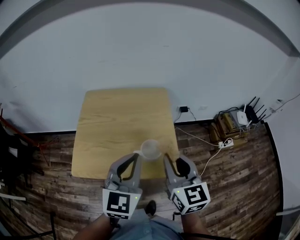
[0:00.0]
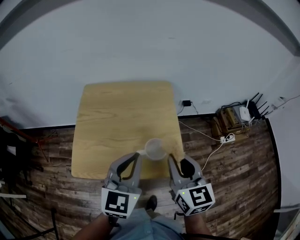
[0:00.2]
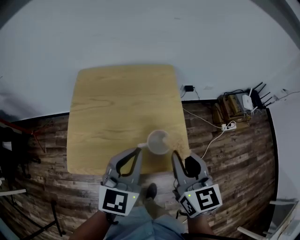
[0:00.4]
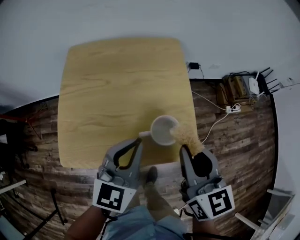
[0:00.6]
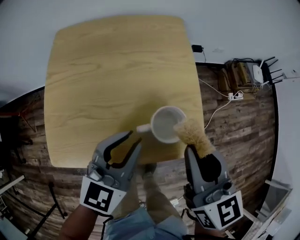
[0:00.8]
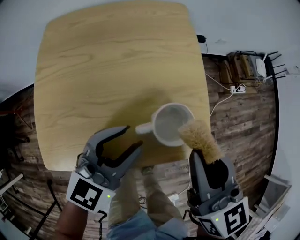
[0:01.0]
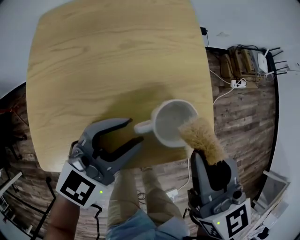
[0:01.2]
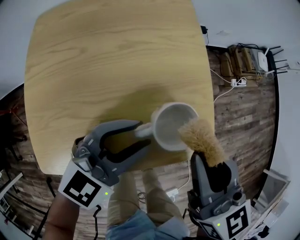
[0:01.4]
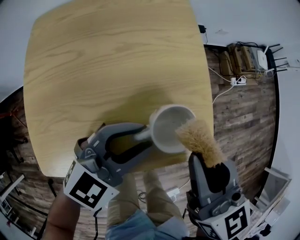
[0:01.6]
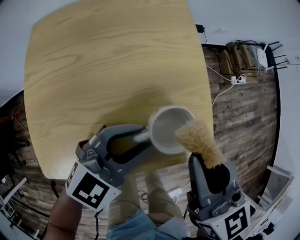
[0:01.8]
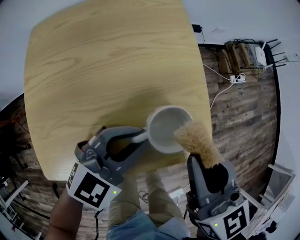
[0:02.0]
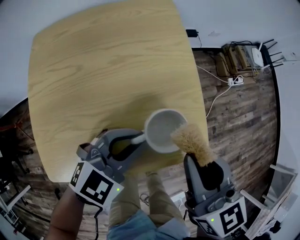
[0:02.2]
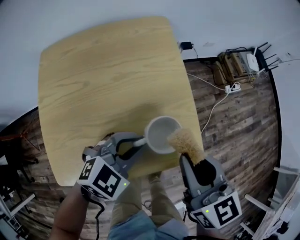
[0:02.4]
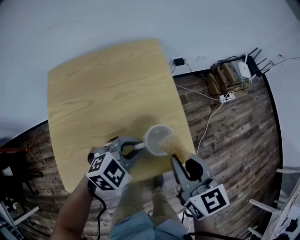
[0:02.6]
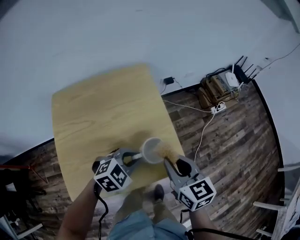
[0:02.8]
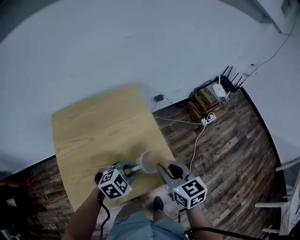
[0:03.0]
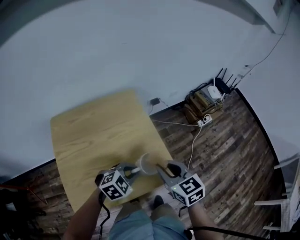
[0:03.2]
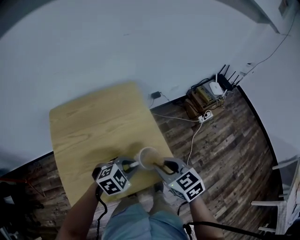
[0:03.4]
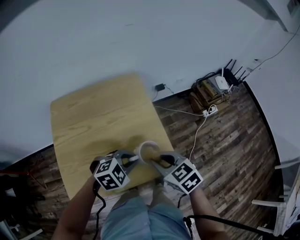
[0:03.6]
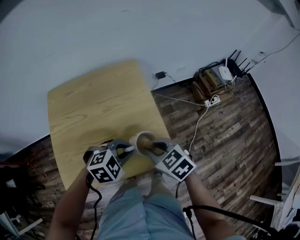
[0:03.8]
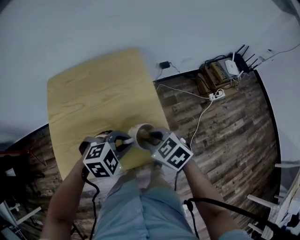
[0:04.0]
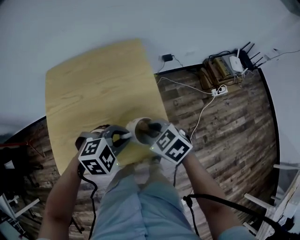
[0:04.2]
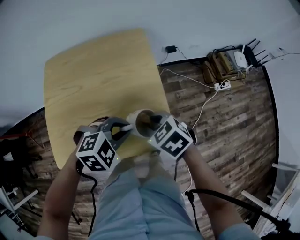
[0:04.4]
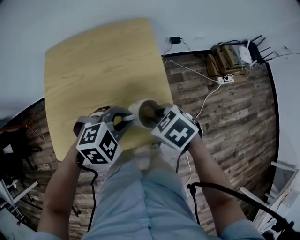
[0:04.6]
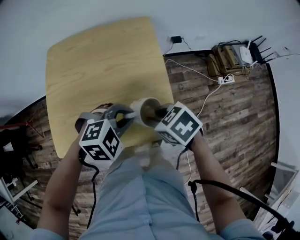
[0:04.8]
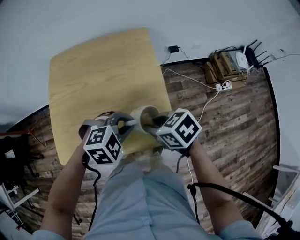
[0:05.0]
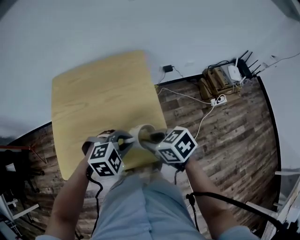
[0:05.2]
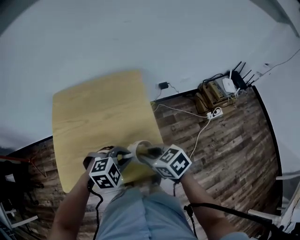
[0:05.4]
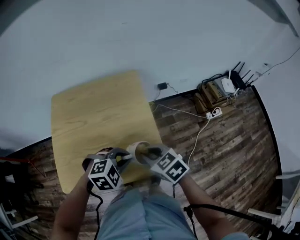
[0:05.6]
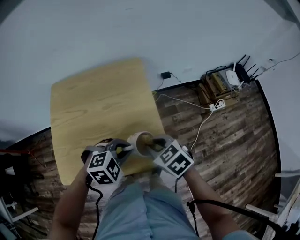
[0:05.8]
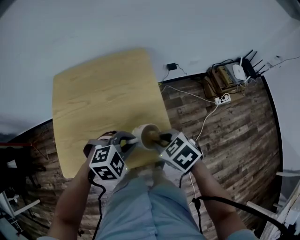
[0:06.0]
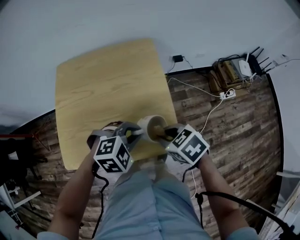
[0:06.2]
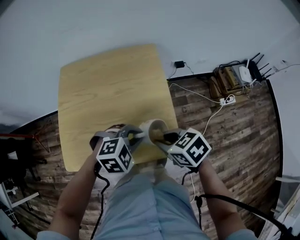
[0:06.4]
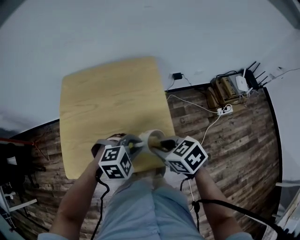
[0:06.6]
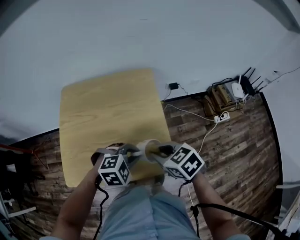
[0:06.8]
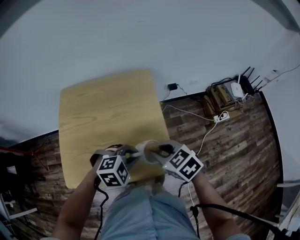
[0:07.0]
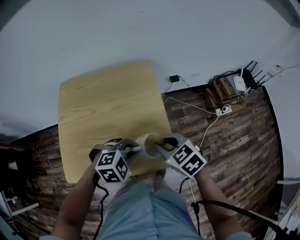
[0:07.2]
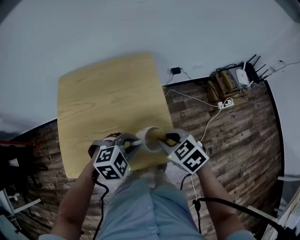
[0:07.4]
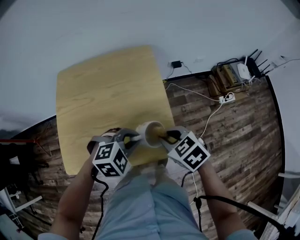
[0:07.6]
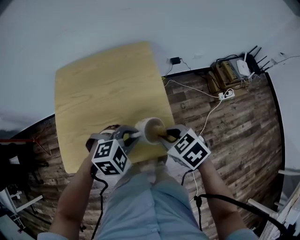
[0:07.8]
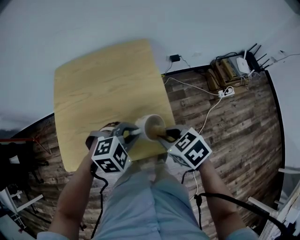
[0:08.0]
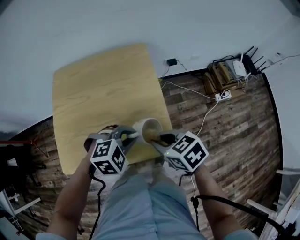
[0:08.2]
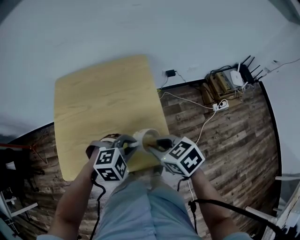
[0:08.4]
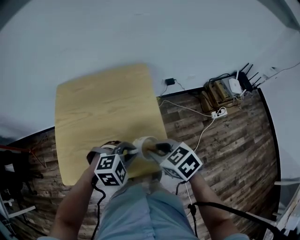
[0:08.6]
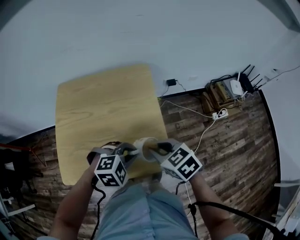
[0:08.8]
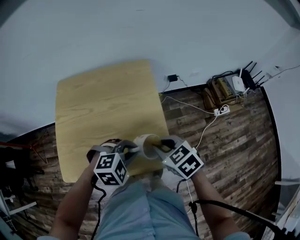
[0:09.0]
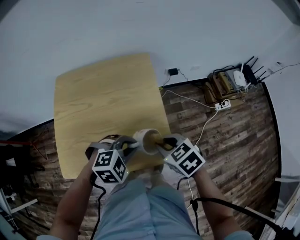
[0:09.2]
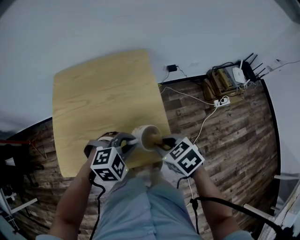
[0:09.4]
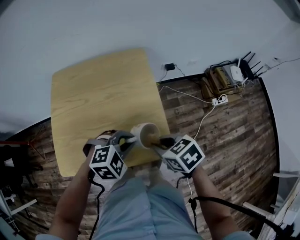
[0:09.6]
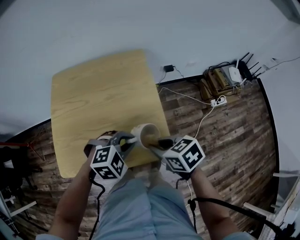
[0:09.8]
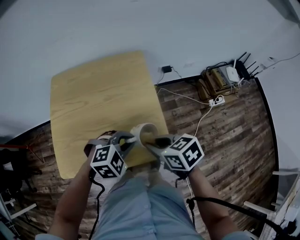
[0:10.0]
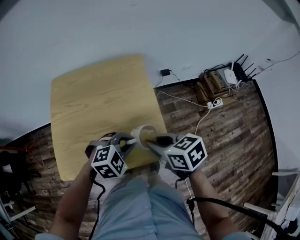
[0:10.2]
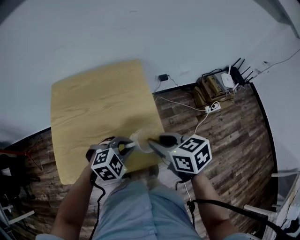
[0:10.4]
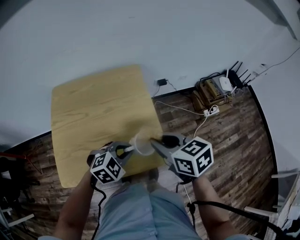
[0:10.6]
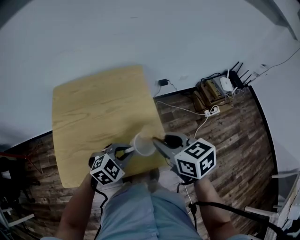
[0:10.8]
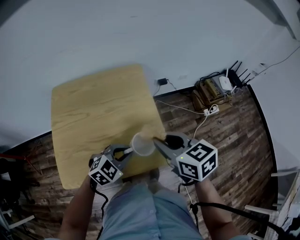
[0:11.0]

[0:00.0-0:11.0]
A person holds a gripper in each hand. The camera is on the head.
0:00.0 to 0:01.6: The left gripper moves downward, approximately 20 cm, turns by some 50 degrees, and opens; the right gripper goes approximately 10 cm downward.
0:01.6 to 0:03.2: The left gripper swivels about 30 degrees, and closes up.
0:03.2 to 0:04.8: The right gripper shifts roughly 10 cm downward, and rotates approximately 50 degrees.
0:04.8 to 0:09.4: The grippers move only a little.
0:09.4 to 0:11.0: The left gripper changes its angle by roughly 20 degrees, while the right gripper travels upward by some 10 cm, and turns by roughly 30 degrees.

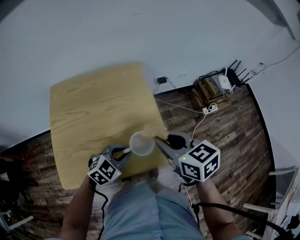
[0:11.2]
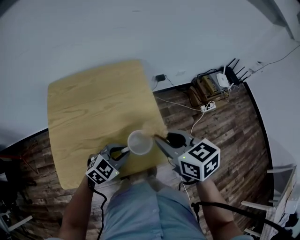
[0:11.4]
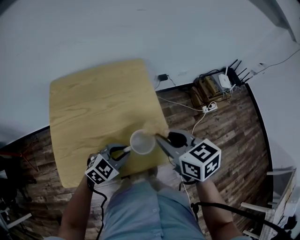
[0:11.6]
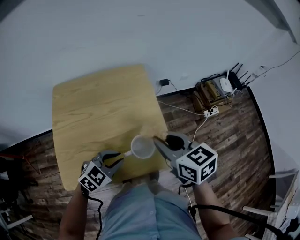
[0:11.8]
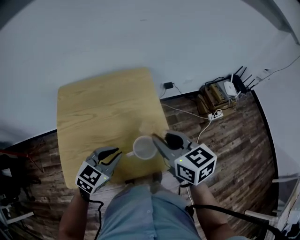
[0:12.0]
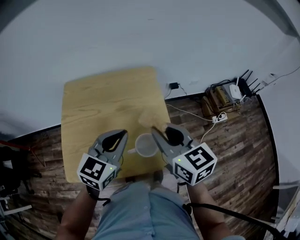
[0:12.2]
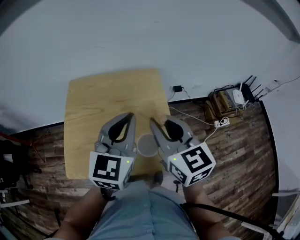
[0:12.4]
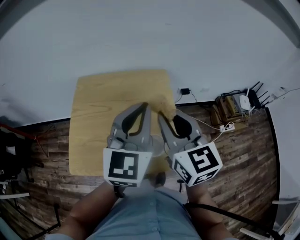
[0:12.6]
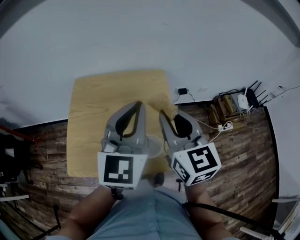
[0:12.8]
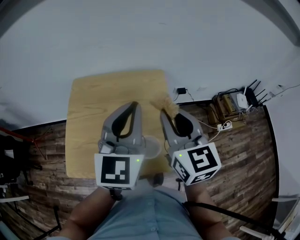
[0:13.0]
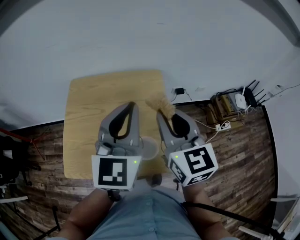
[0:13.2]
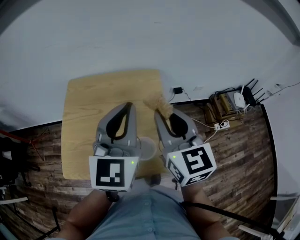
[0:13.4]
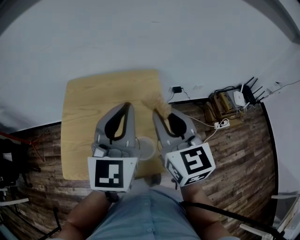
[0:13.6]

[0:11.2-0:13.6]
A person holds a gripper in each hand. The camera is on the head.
0:11.2 to 0:12.4: The right gripper shifts some 10 cm upward, and turns by some 20 degrees, while the left gripper shifts about 25 cm upward, and points its fingers some 30 degrees further upward.
0:12.4 to 0:13.6: The left gripper moves about 5 cm.

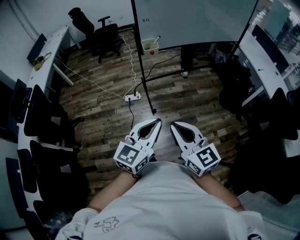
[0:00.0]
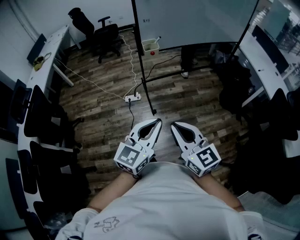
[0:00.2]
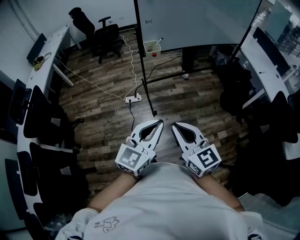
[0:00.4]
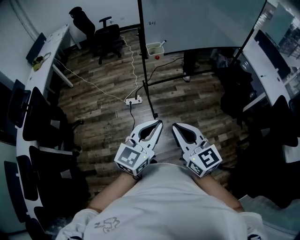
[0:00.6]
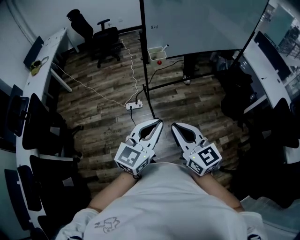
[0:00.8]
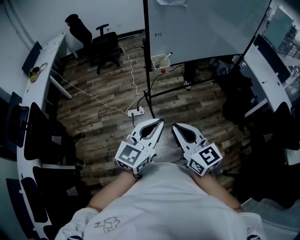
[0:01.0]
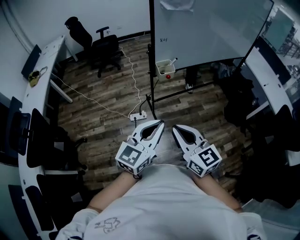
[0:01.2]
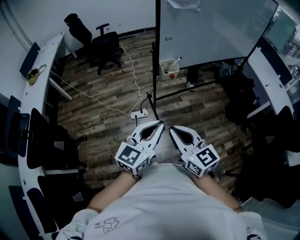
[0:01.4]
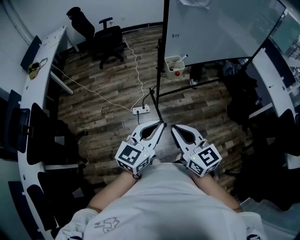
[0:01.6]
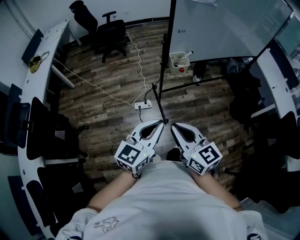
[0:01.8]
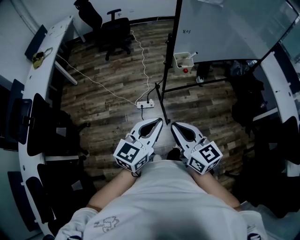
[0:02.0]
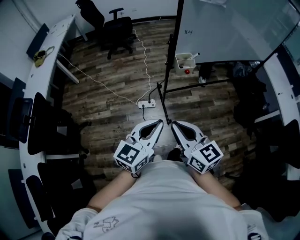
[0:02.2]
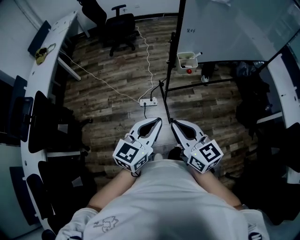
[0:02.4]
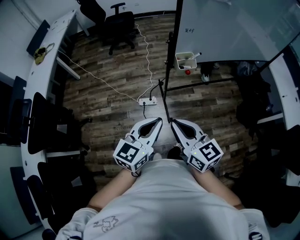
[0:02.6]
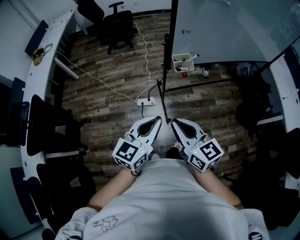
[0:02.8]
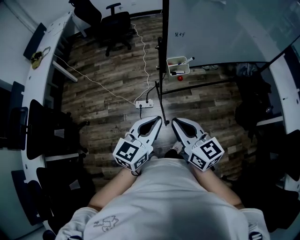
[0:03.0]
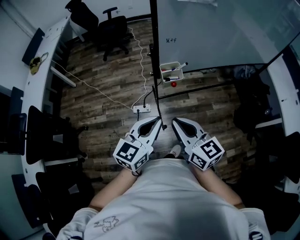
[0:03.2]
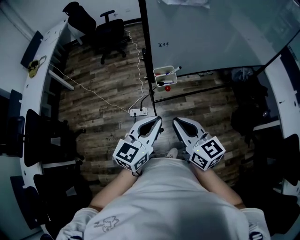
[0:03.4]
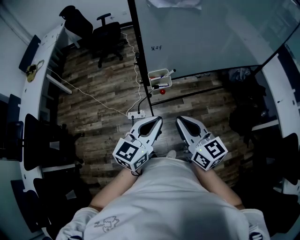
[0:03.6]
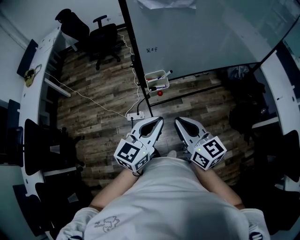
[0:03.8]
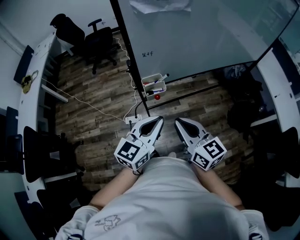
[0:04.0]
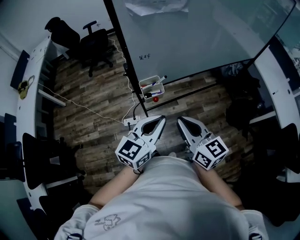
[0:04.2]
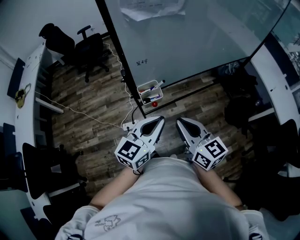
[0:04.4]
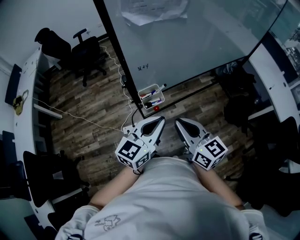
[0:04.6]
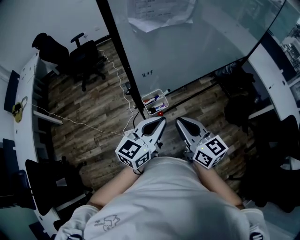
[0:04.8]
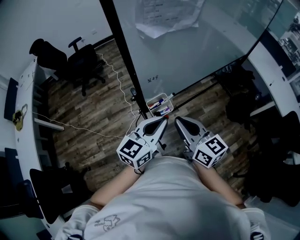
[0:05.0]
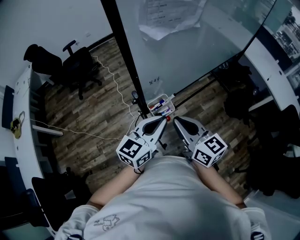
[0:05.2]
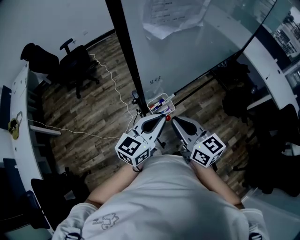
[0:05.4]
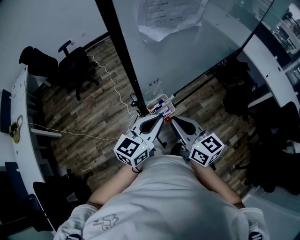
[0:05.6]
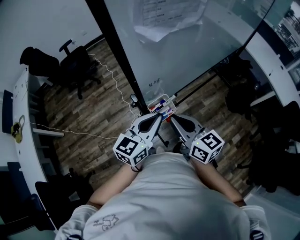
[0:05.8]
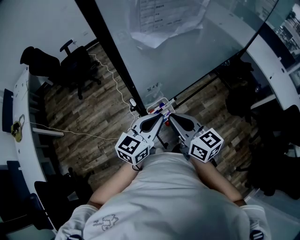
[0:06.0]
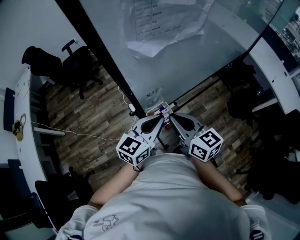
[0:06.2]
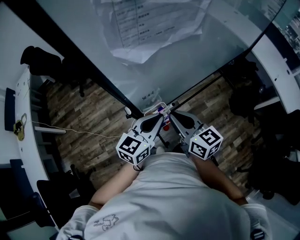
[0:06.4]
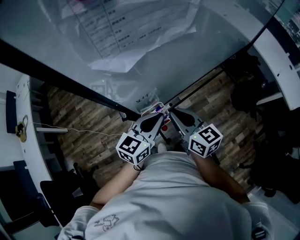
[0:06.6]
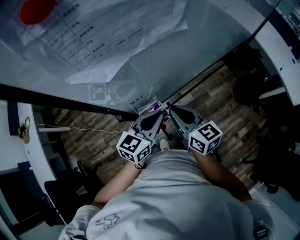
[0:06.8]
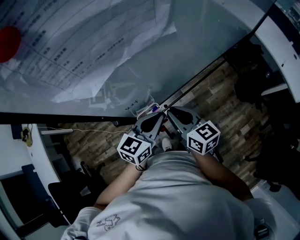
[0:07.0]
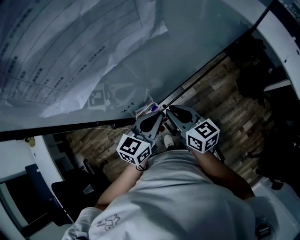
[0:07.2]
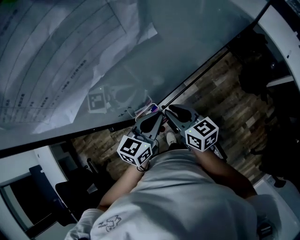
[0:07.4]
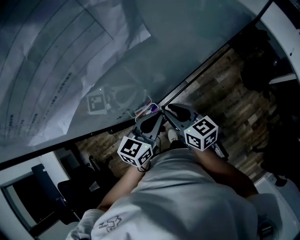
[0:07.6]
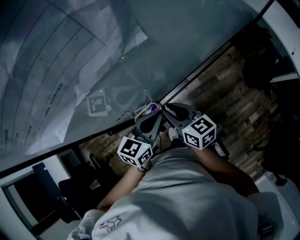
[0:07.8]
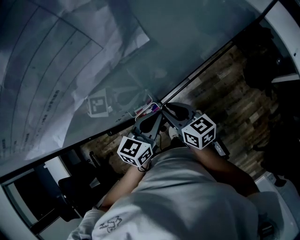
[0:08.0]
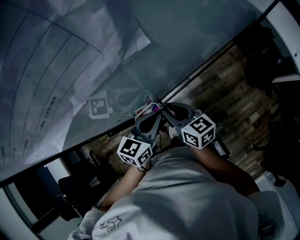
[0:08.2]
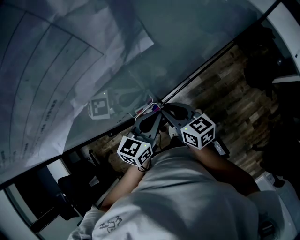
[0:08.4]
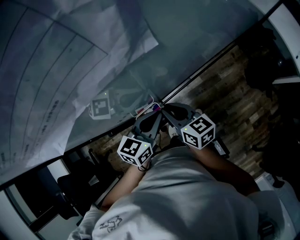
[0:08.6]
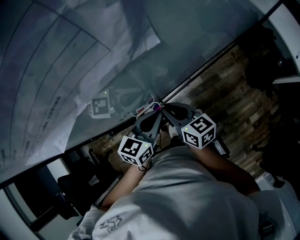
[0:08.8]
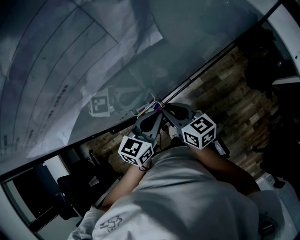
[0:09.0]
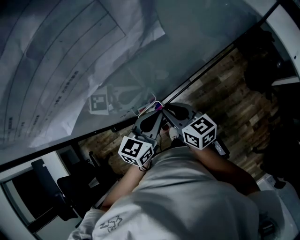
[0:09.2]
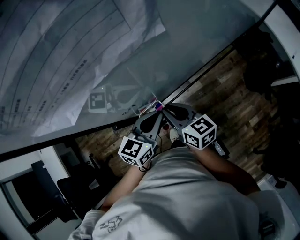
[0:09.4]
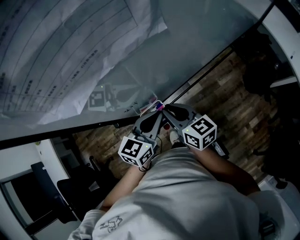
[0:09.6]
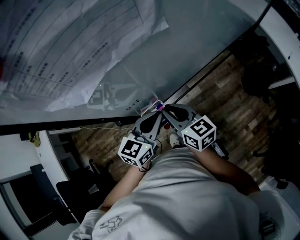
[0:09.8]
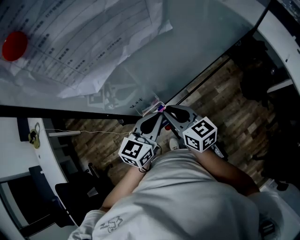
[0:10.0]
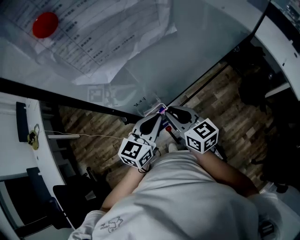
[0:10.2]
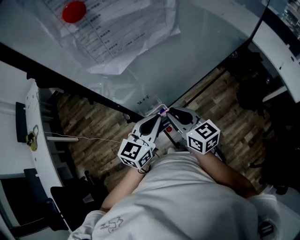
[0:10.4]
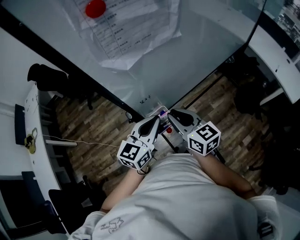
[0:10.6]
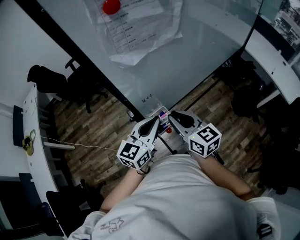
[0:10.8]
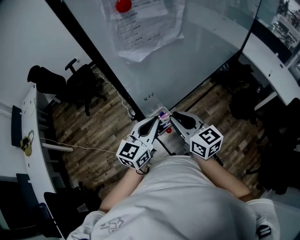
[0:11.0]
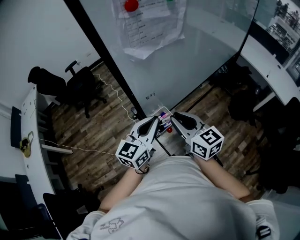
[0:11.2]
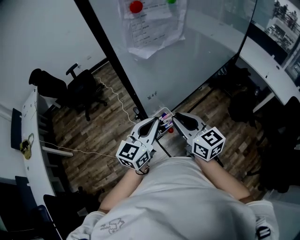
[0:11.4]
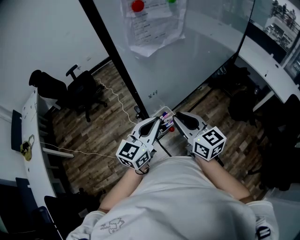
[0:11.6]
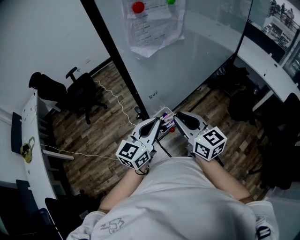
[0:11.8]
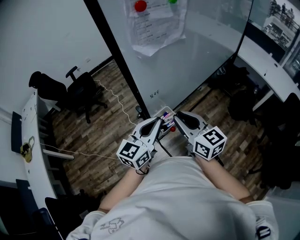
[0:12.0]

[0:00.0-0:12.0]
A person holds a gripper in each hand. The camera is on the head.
0:00.0 to 0:01.6: The two grippers go about 30 cm forward and to the left.
0:01.6 to 0:03.0: The left gripper moves forward, approximately 15 cm, while the right gripper travels forward and to the right by some 15 cm.
0:03.0 to 0:04.4: Both grippers move forward and to the right, about 20 cm.
0:04.4 to 0:06.0: Both grippers move forward and to the left, about 15 cm.
0:06.0 to 0:07.6: The right gripper goes about 15 cm downward and forward. The left gripper is displaced forward, downward and to the right by approximately 15 cm.
0:07.6 to 0:09.0: The grippers stay close to where they were, moving slightly.
0:09.0 to 0:10.4: The grippers both shift upward by some 10 cm.
0:10.4 to 0:12.0: The grippers both shift backward and upward by roughly 10 cm.
